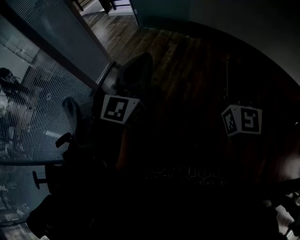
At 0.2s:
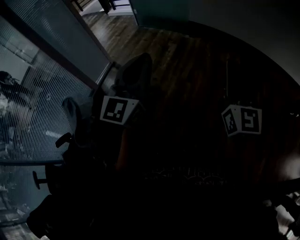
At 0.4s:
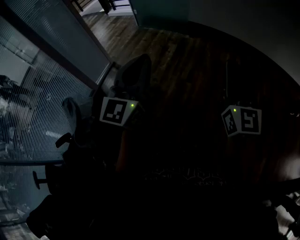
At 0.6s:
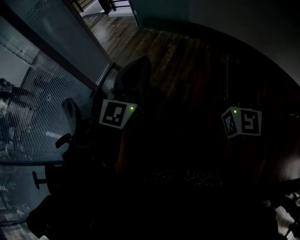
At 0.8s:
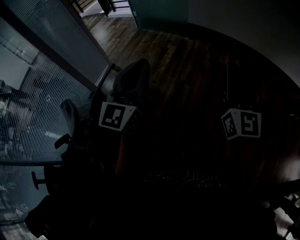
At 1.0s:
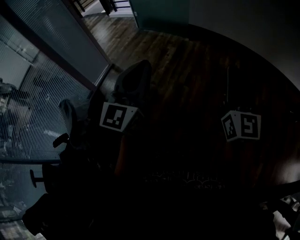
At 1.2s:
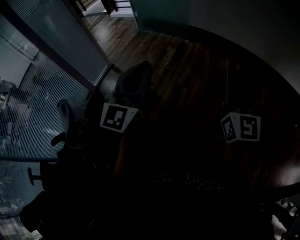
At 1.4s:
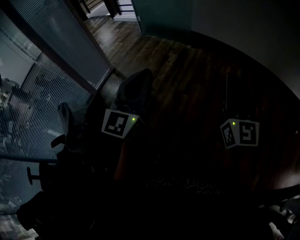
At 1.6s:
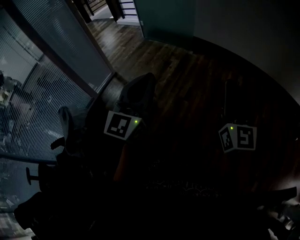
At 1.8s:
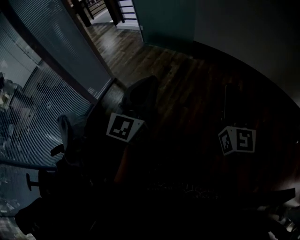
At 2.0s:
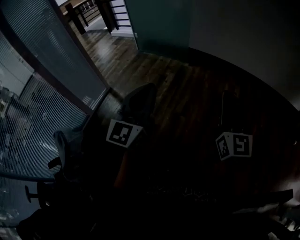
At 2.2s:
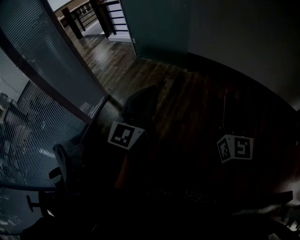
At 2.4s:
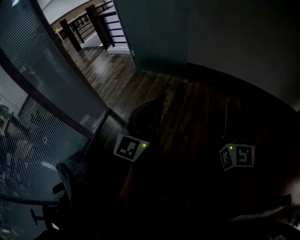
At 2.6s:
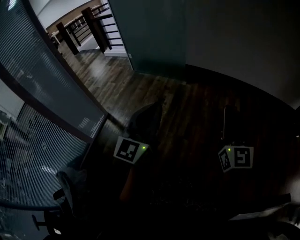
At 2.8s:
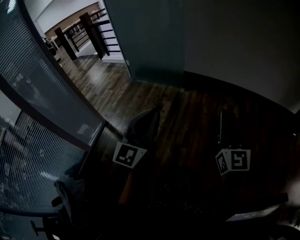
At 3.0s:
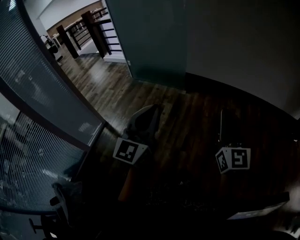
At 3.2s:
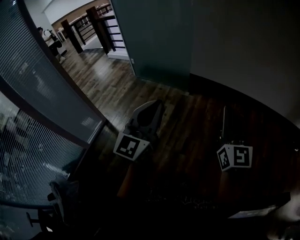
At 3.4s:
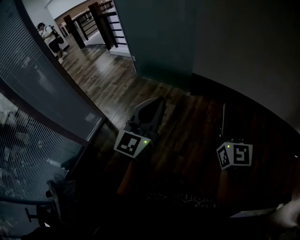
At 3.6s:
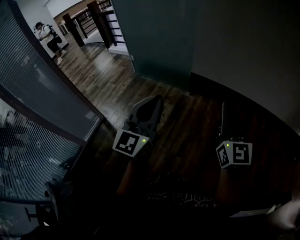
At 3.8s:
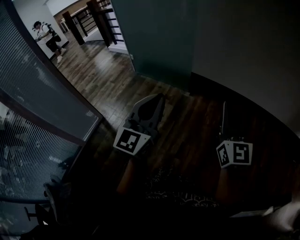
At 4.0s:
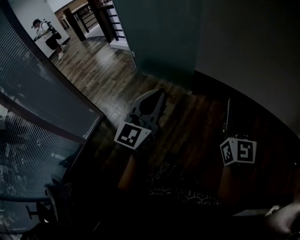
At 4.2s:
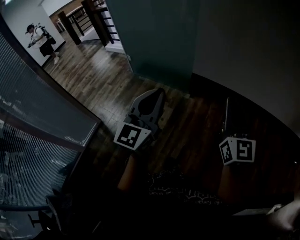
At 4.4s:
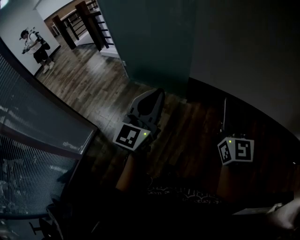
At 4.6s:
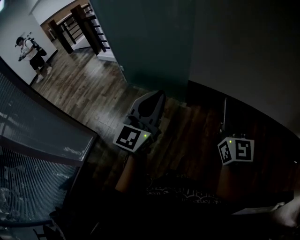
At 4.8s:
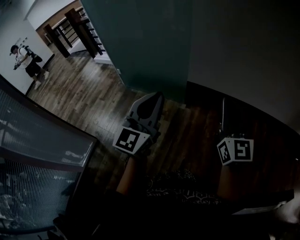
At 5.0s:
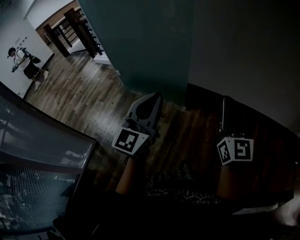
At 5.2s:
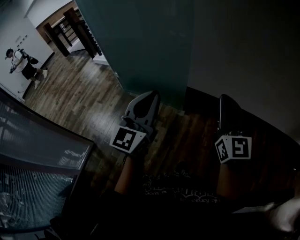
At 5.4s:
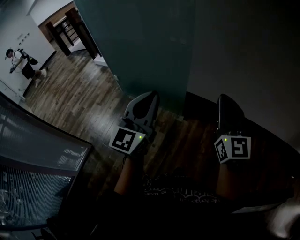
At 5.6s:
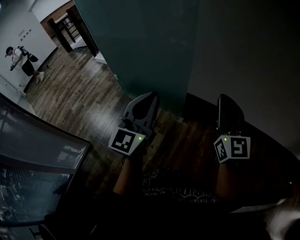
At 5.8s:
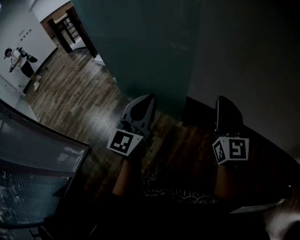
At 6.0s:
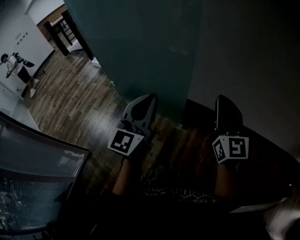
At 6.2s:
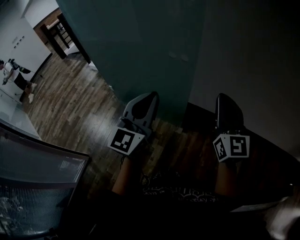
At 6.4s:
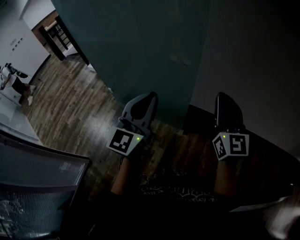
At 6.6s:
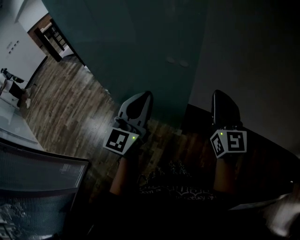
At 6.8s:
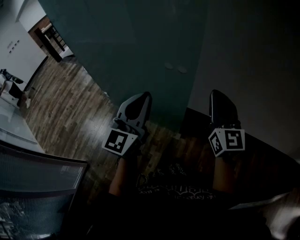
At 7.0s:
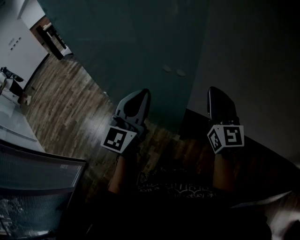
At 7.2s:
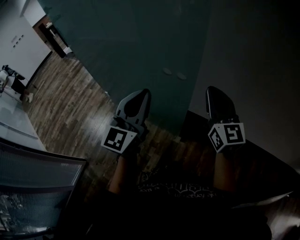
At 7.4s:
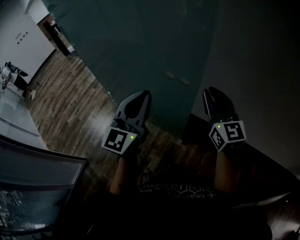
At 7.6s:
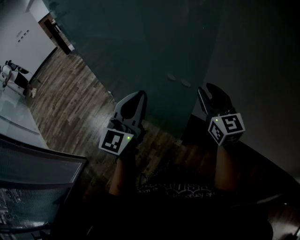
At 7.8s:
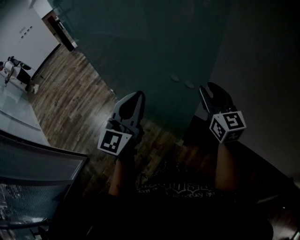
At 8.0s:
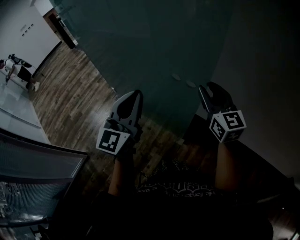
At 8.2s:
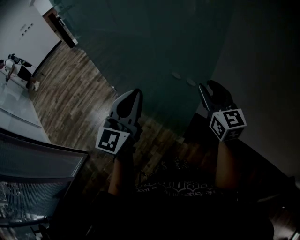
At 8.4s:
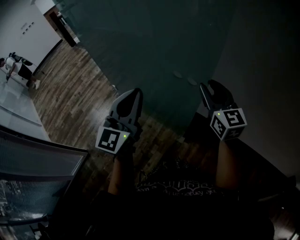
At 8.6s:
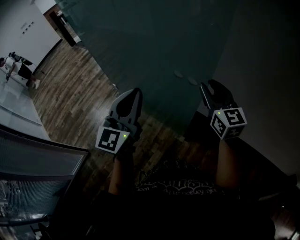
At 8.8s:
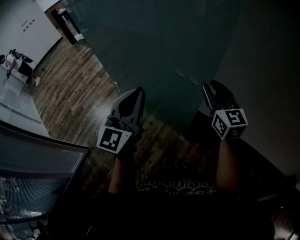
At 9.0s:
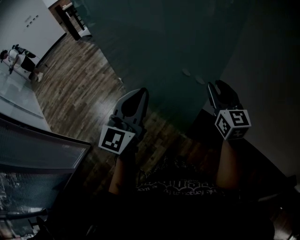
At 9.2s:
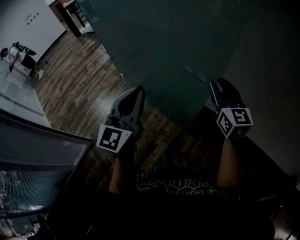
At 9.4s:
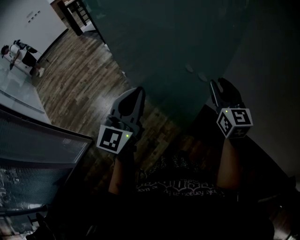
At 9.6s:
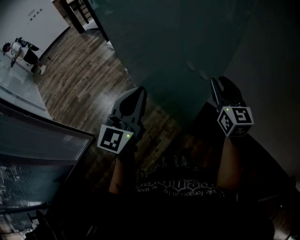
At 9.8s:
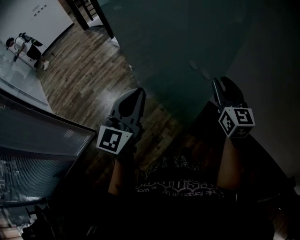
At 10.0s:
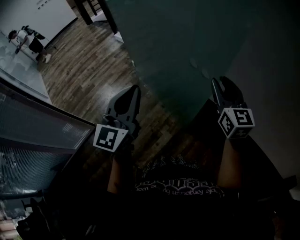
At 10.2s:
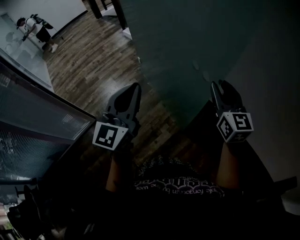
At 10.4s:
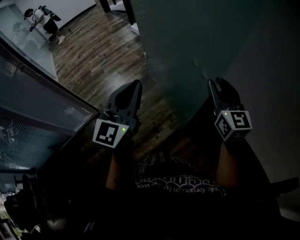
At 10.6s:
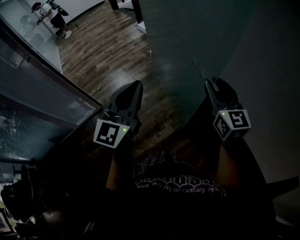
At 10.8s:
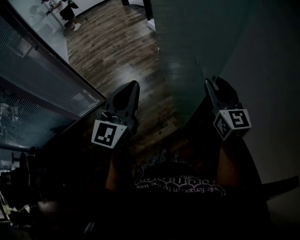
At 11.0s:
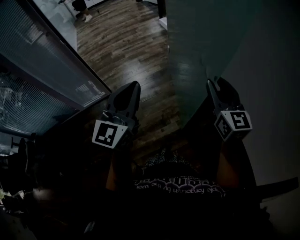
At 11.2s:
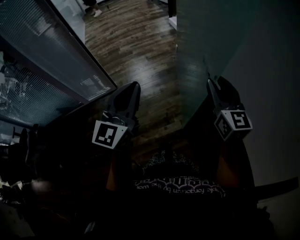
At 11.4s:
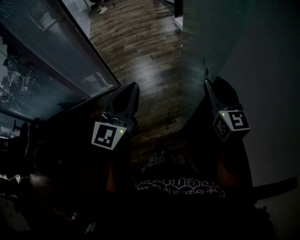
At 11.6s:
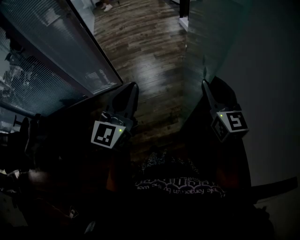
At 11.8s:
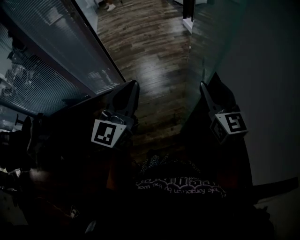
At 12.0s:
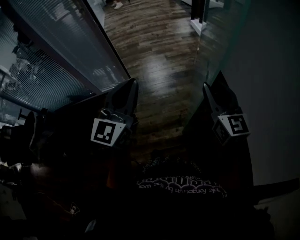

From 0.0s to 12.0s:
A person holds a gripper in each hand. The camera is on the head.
From 0.0s to 1.6s: The left gripper moves to the right and forward, roughly 10 cm. The right gripper moves forward and to the right, some 10 cm.
From 1.6s to 3.0s: The grippers both shift forward by some 35 cm.
From 3.0s to 4.4s: The two grippers go some 35 cm forward.
From 4.4s to 6.0s: The two grippers go about 40 cm forward.
From 6.0s to 7.6s: The two grippers go roughly 25 cm forward. The right gripper opens.
From 7.6s to 9.0s: The left gripper heads to the left and backward, covering approximately 10 cm.
From 9.0s to 10.4s: Both grippers move backward and to the left, about 15 cm.
From 10.4s to 12.0s: The left gripper changes place by roughly 20 cm, and rotates about 30 degrees, while the right gripper shifts by roughly 20 cm, and changes its angle by approximately 30 degrees.

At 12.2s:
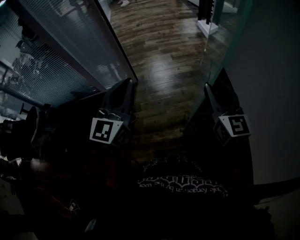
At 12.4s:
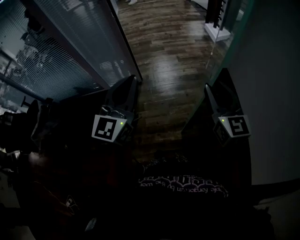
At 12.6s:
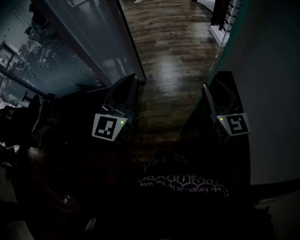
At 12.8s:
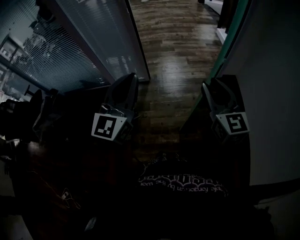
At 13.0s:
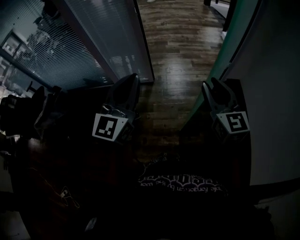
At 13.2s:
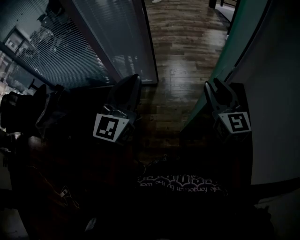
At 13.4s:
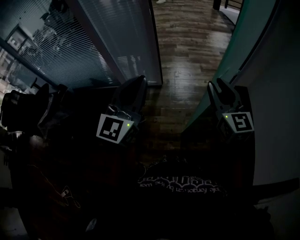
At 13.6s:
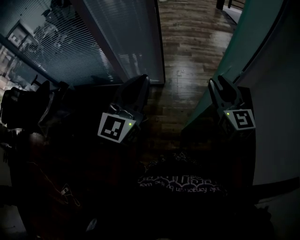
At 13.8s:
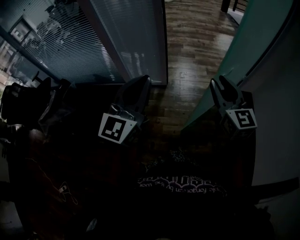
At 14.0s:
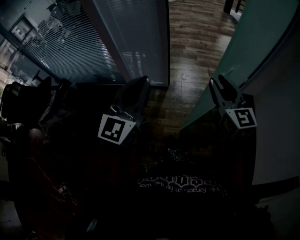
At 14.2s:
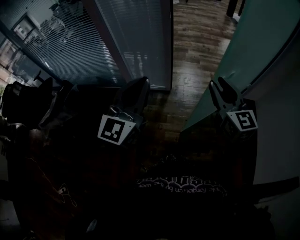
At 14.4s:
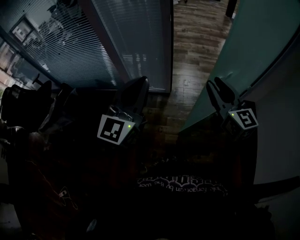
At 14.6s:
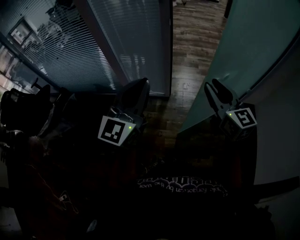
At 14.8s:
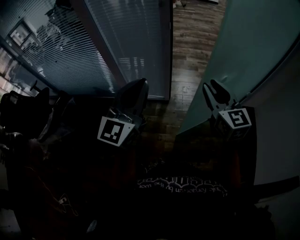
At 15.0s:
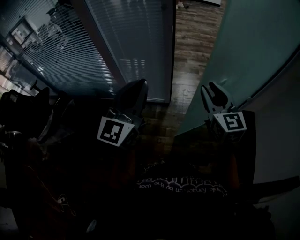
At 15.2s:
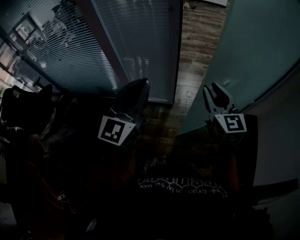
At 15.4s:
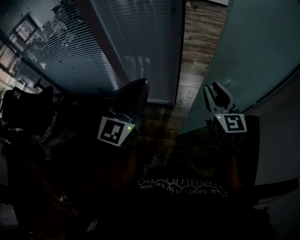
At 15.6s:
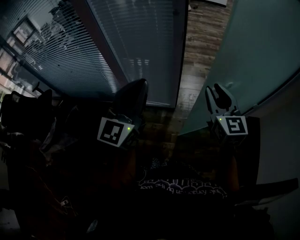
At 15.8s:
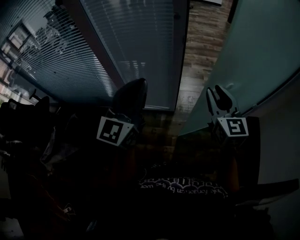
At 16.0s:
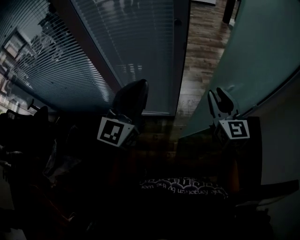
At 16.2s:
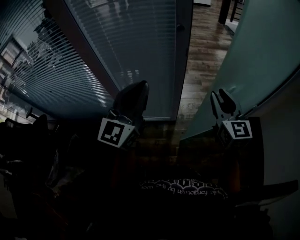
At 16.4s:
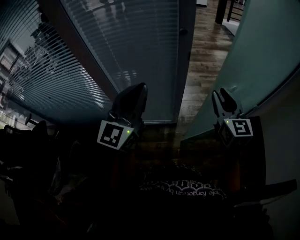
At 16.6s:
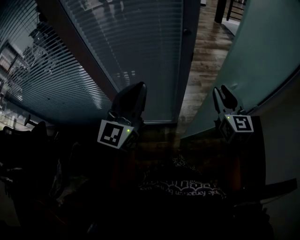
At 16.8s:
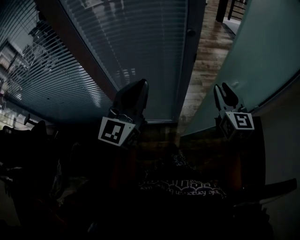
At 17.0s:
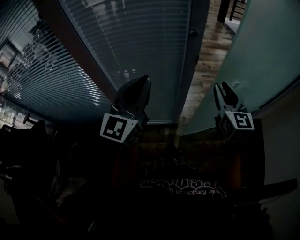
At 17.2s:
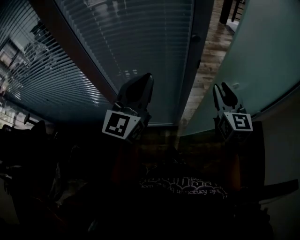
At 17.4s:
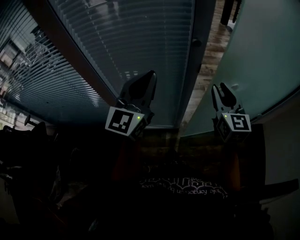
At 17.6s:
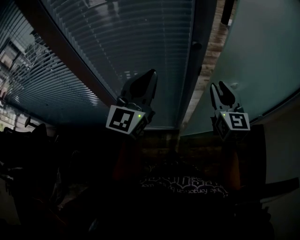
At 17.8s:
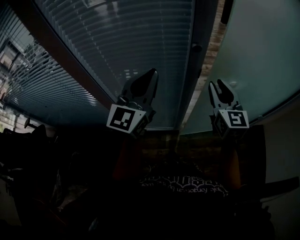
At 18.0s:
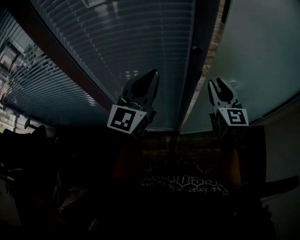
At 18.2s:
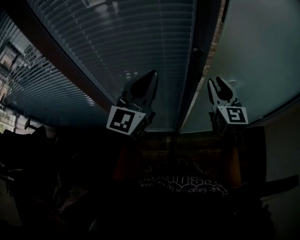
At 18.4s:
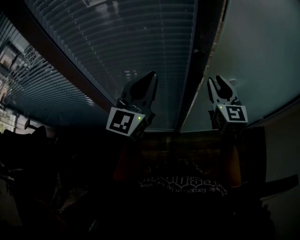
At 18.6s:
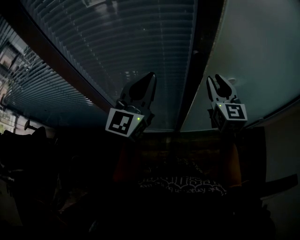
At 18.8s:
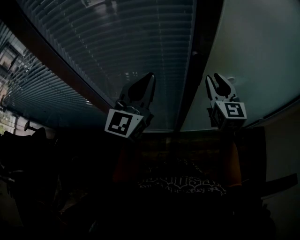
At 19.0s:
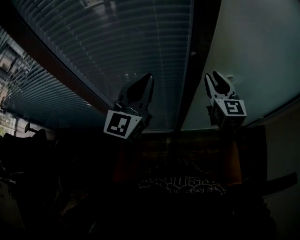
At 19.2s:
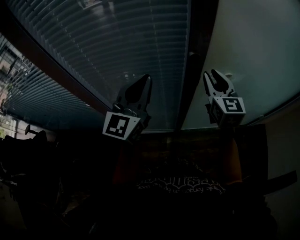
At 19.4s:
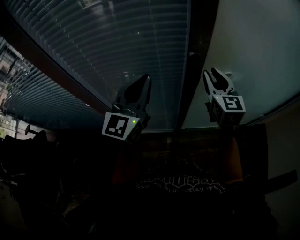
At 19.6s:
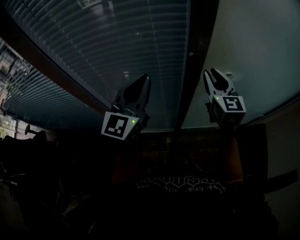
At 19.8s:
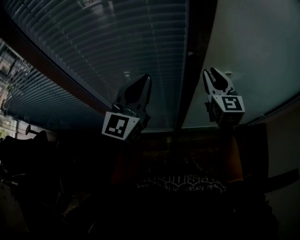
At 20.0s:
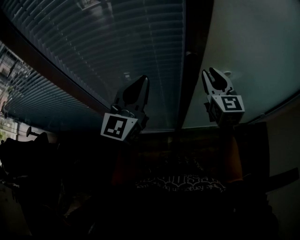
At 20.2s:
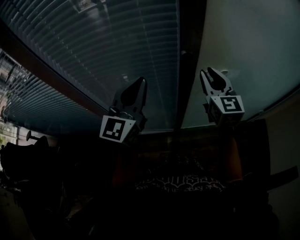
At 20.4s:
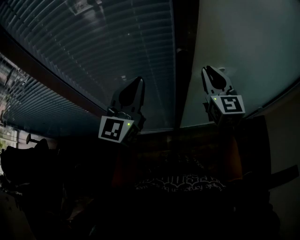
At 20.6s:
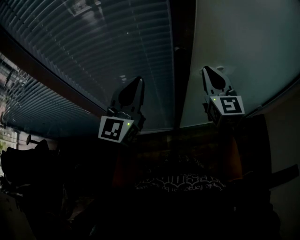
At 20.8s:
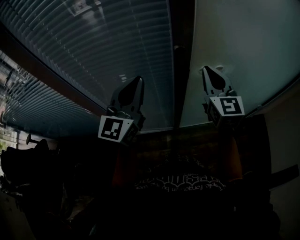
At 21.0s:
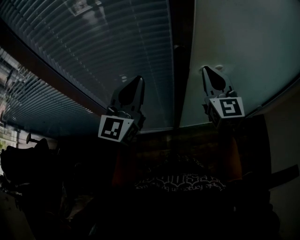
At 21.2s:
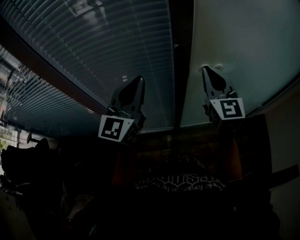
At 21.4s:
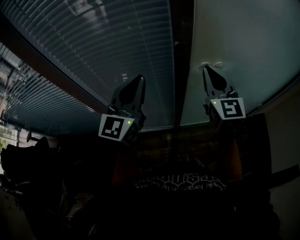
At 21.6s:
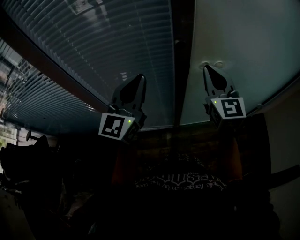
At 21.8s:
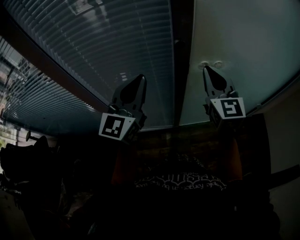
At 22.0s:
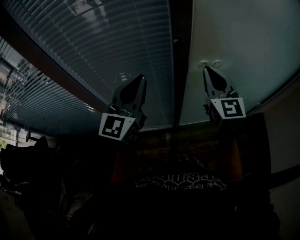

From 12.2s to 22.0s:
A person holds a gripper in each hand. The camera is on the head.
From 12.2s to 13.6s: The grippers both shift to the left and forward by approximately 25 cm.
From 13.6s to 15.0s: The grippers both shift forward and to the left by about 15 cm.
From 15.0s to 16.4s: The two grippers go about 20 cm forward and to the left.
From 16.4s to 17.8s: Both grippers travel together forward, about 15 cm.
From 17.8s to 19.2s: The right gripper travels forward by some 5 cm.
From 19.2s to 20.6s: The right gripper closes its fingers.
From 20.6s to 22.0s: The grippers move only a little.

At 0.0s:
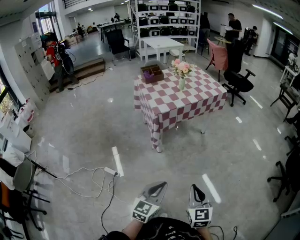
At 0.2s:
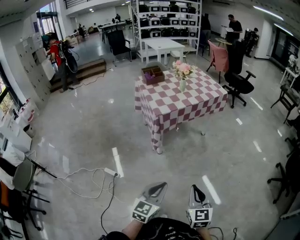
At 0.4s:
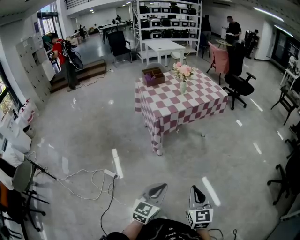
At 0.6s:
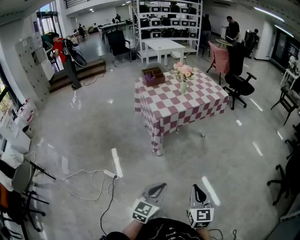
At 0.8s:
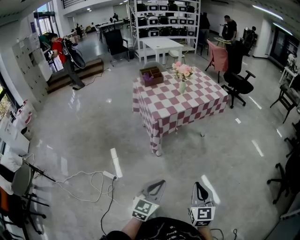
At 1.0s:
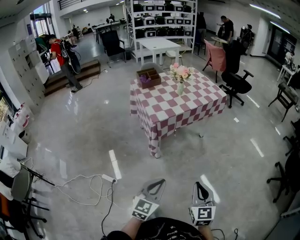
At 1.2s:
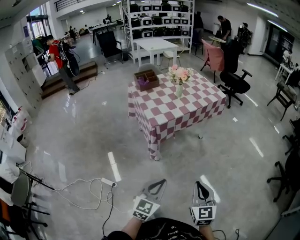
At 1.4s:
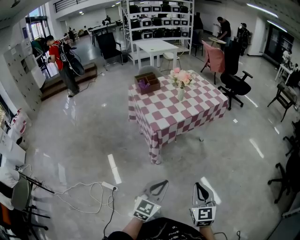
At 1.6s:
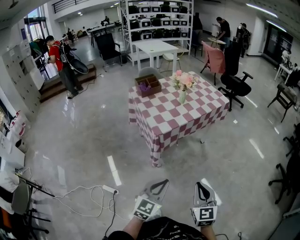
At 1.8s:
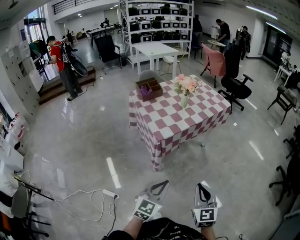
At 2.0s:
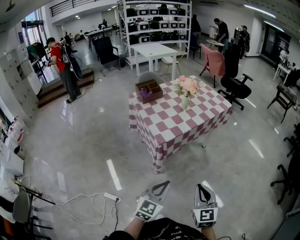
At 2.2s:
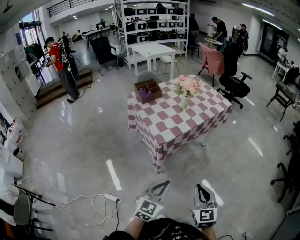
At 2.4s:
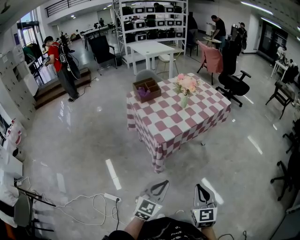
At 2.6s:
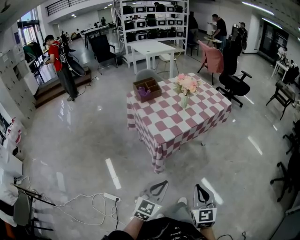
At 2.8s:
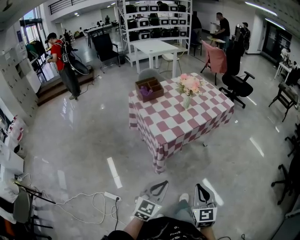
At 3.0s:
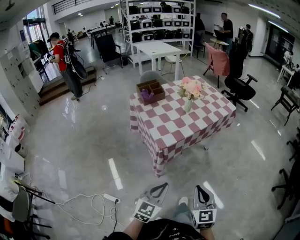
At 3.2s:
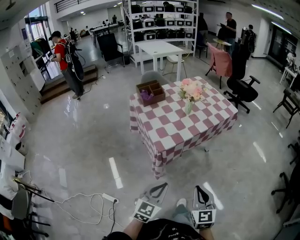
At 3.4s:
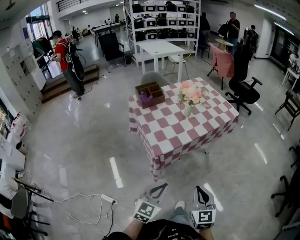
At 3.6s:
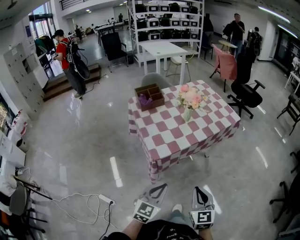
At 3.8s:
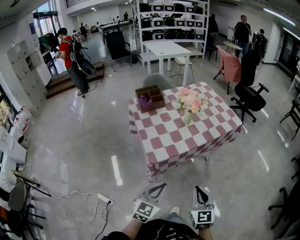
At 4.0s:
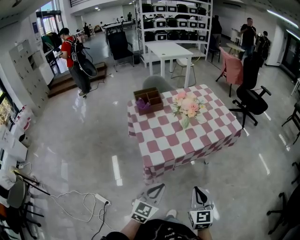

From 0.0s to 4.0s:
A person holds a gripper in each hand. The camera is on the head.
From 0.0s to 1.4s: The two grippers go roughly 15 cm forward.
From 1.4s to 2.6s: The right gripper heads to the left and forward, covering roughly 10 cm, while the left gripper is displaced forward and to the left by about 10 cm.
From 2.6s to 4.0s: The two grippers go some 20 cm forward.
